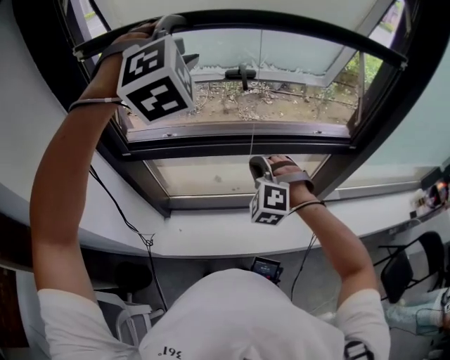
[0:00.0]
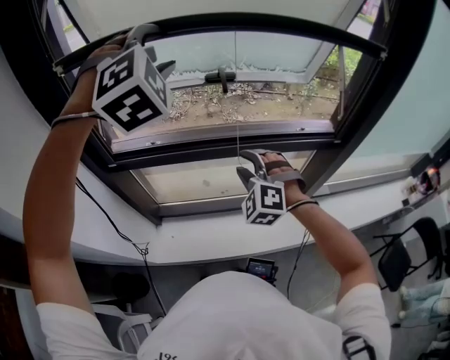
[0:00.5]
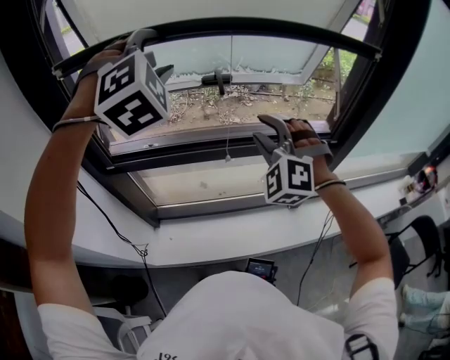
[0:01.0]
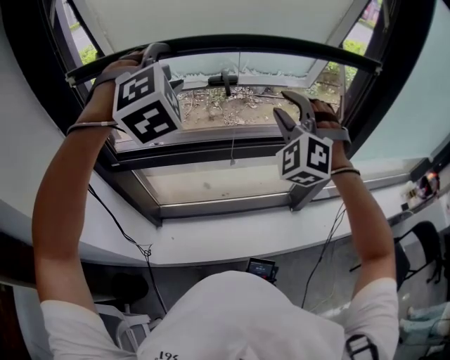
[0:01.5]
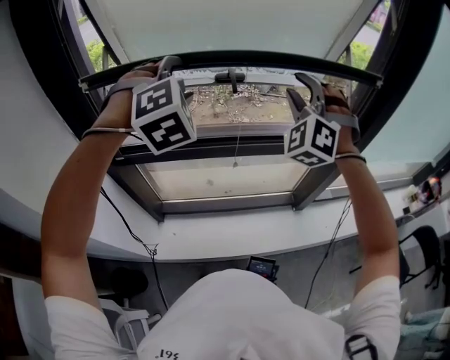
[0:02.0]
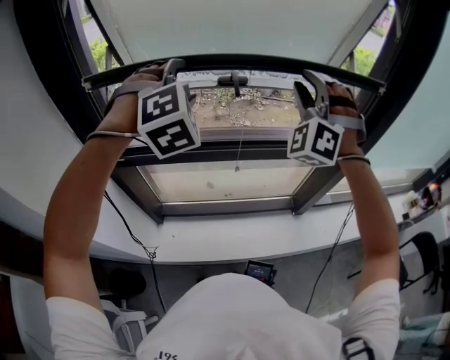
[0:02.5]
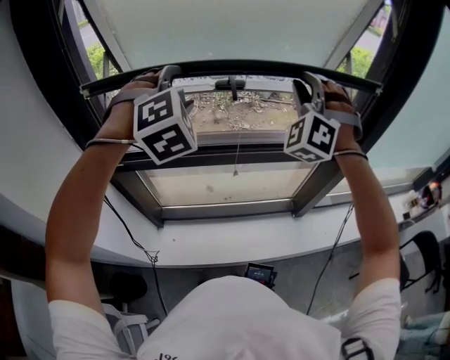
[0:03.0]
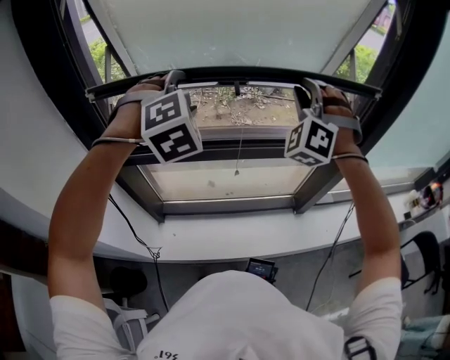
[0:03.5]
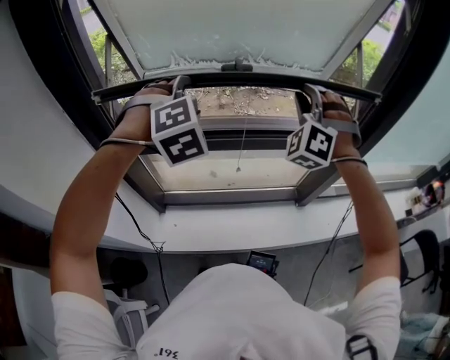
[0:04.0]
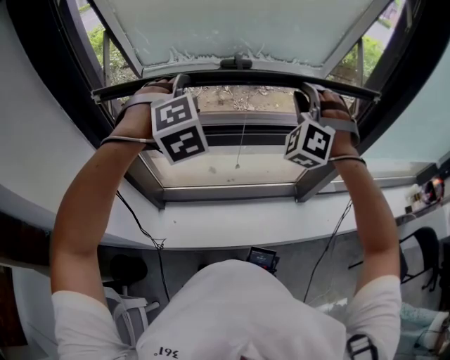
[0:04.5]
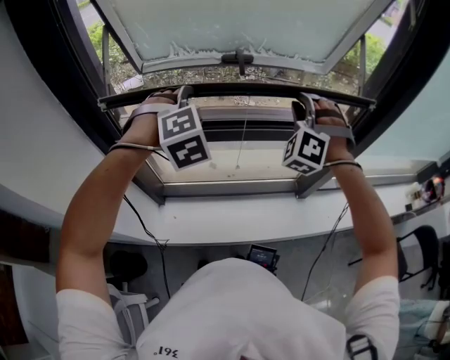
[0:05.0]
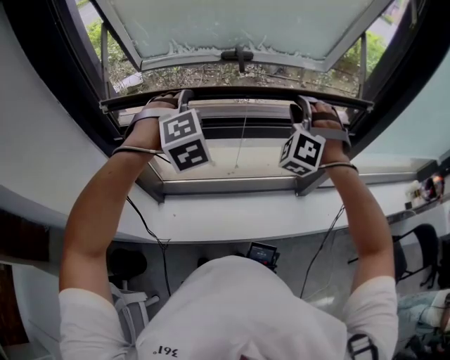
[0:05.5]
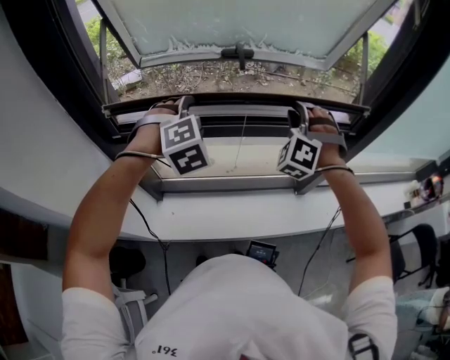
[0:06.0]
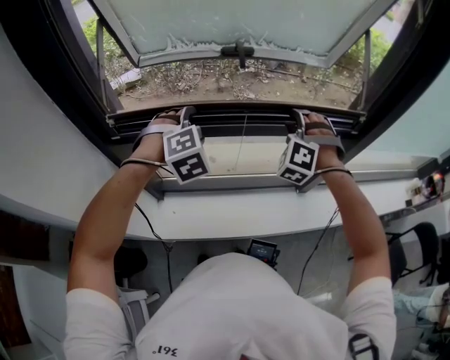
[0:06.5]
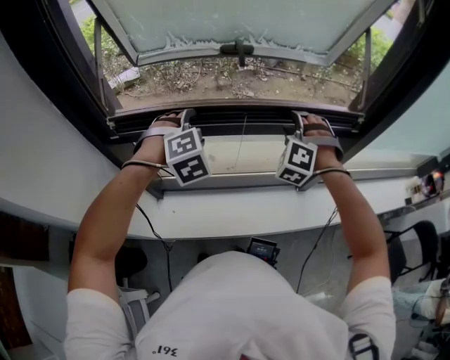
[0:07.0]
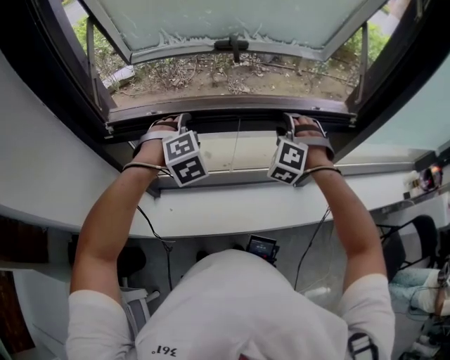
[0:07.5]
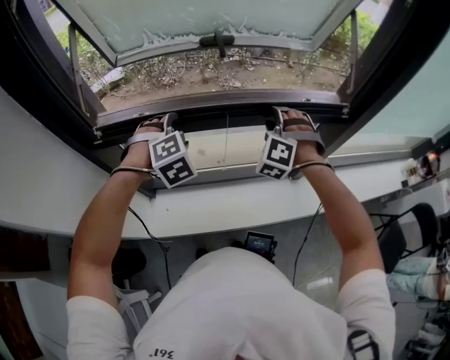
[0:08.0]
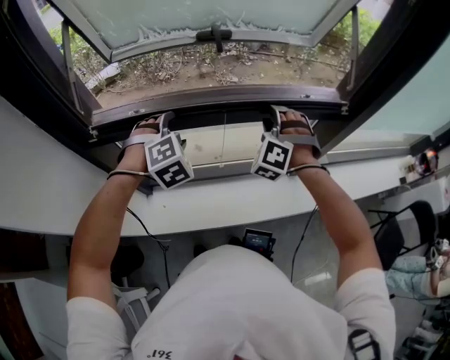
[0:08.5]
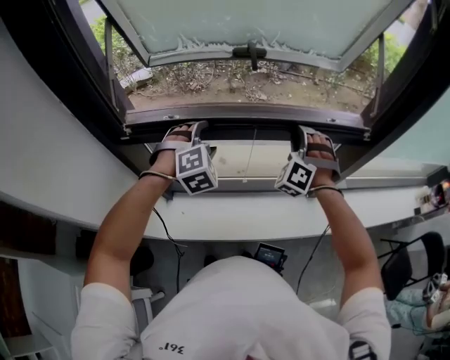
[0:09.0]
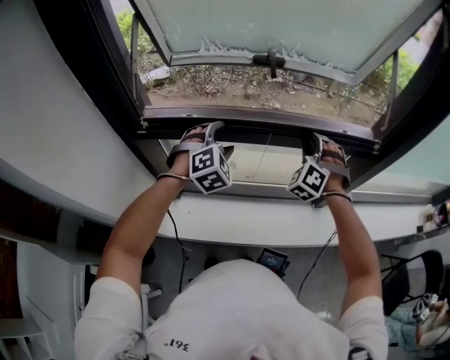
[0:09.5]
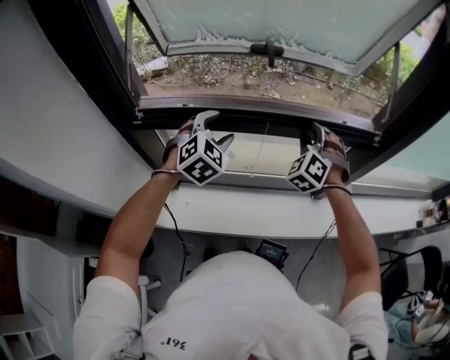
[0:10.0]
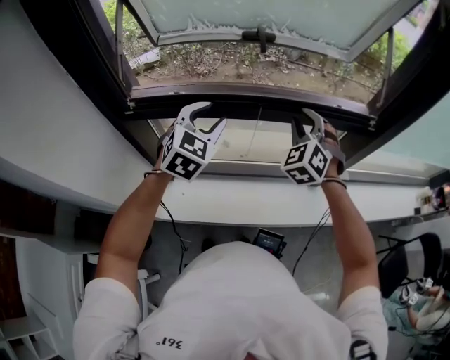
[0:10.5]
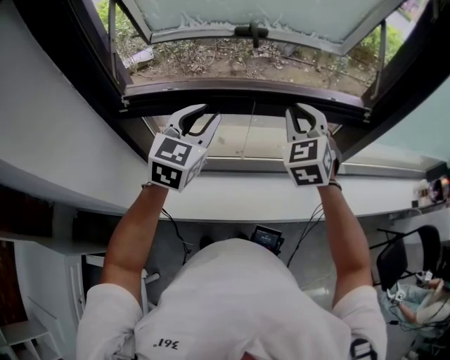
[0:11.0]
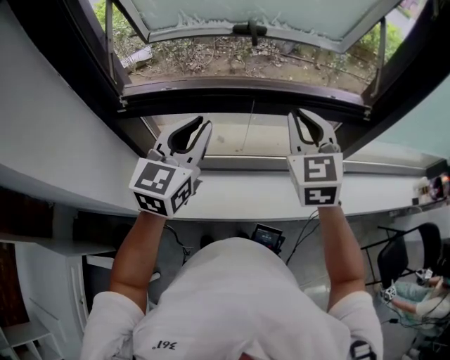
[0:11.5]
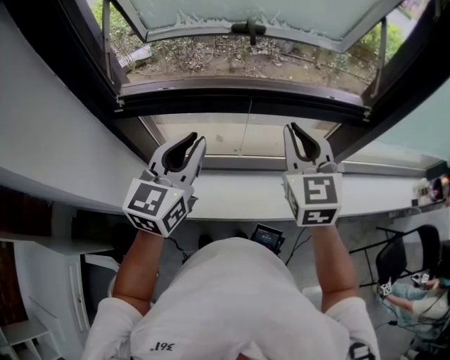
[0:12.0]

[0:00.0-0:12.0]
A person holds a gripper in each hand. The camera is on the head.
0:00.0 to 0:02.0: The right gripper shifts about 25 cm upward and to the right, rotates about 30 degrees, and opens up; the left gripper shifts approximately 10 cm downward.
0:02.0 to 0:04.0: Both grippers travel together downward, approximately 5 cm. The right gripper closes.
0:04.0 to 0:06.0: The two grippers go roughly 10 cm downward.
0:06.0 to 0:08.0: The grippers both shift downward by some 10 cm.
0:08.0 to 0:10.0: The left gripper swivels about 30 degrees.
0:10.0 to 0:12.0: The grippers both shift backward and upward by approximately 15 cm. The left gripper rotates around the line of its fingers by some 40 degrees, counterclockwise from behind, and closes up; the right gripper rotates around the line of its fingers by about 50 degrees, clockwise from behind.

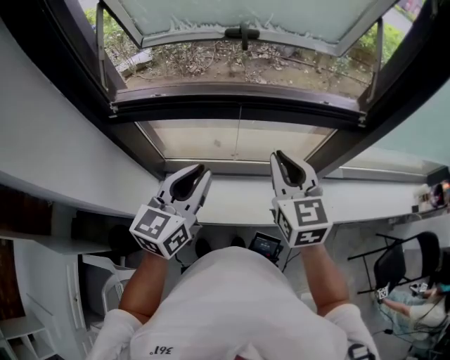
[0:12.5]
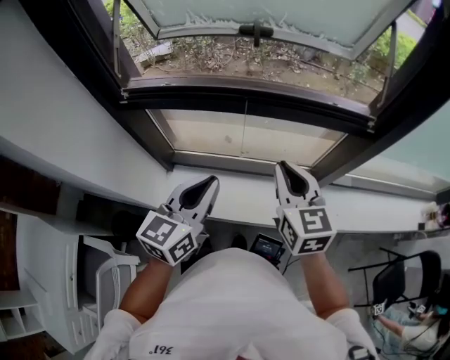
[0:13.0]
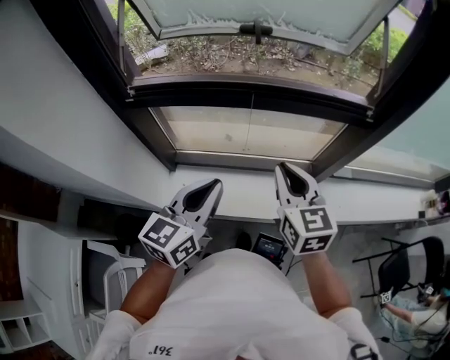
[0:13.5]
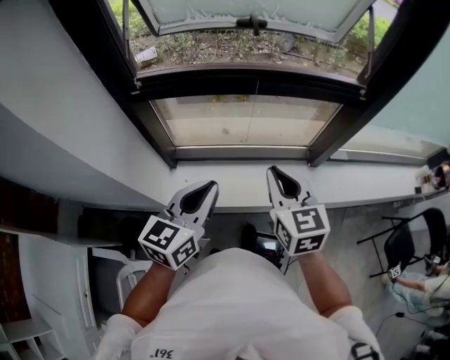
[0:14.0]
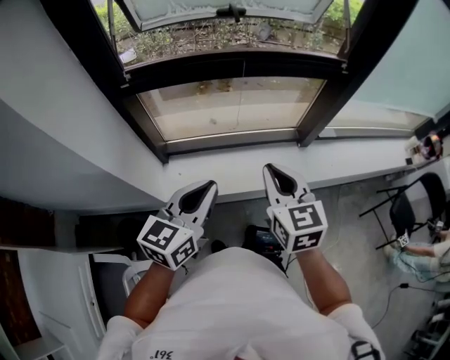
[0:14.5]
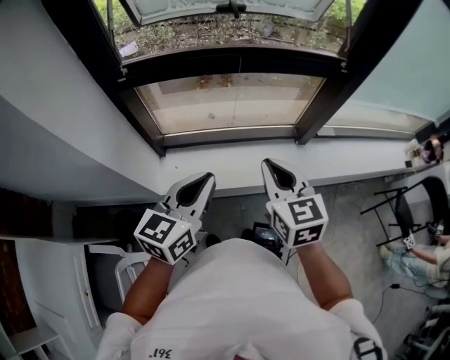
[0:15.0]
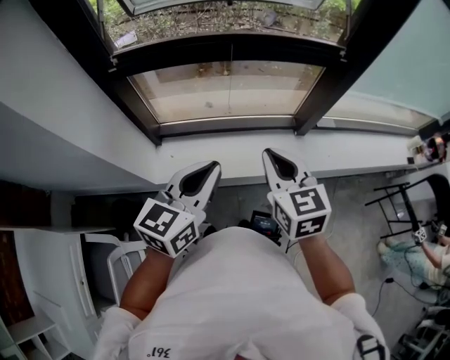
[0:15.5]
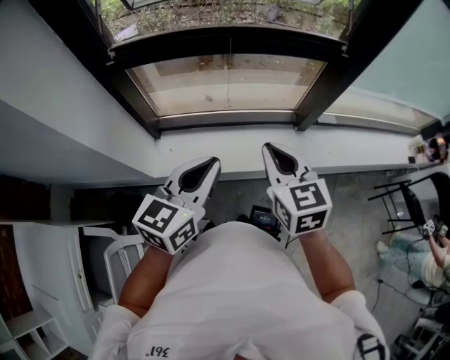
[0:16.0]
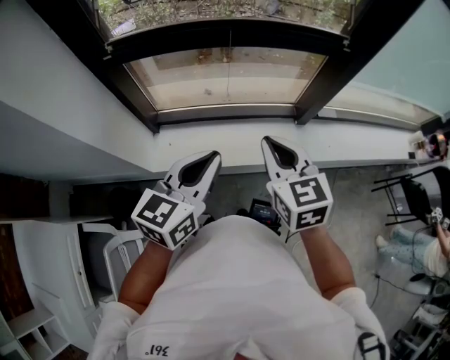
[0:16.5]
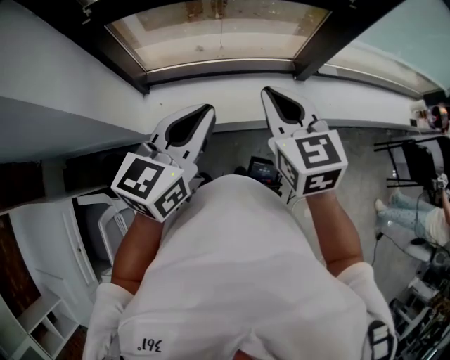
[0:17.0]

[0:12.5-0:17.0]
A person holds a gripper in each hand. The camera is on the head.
0:12.5 to 0:14.5: Both grippers travel together backward, about 20 cm.
0:14.5 to 0:17.0: The right gripper shifts by about 5 cm. Meanwhile the left gripper moves to the right, roughly 5 cm.

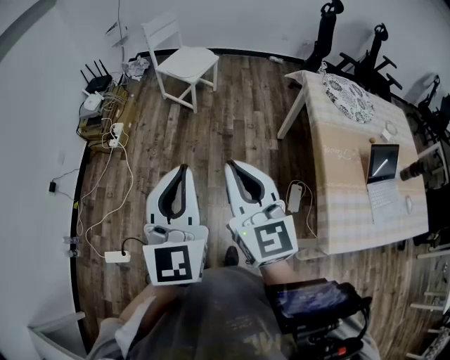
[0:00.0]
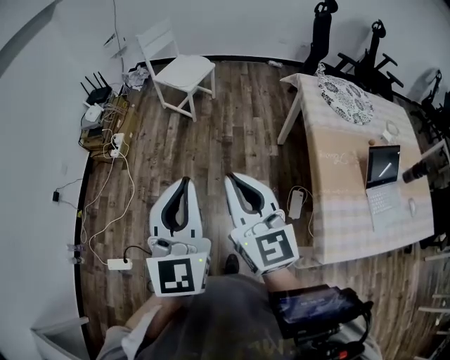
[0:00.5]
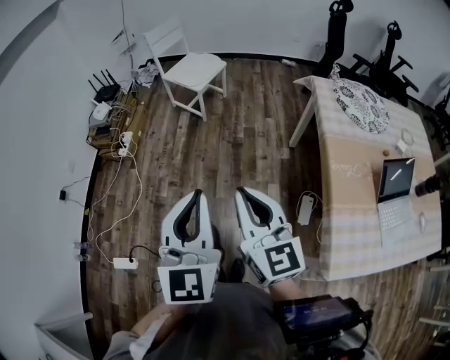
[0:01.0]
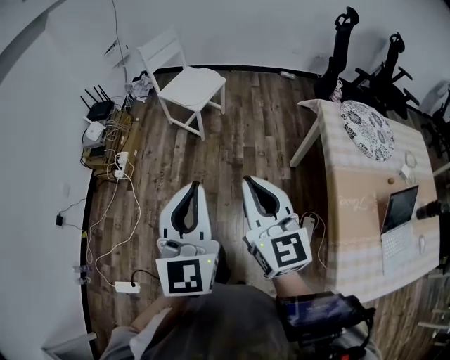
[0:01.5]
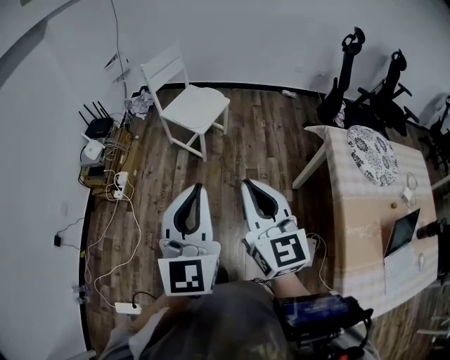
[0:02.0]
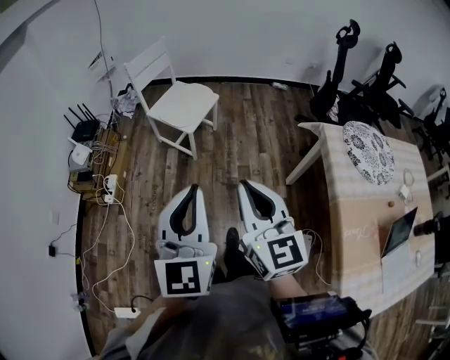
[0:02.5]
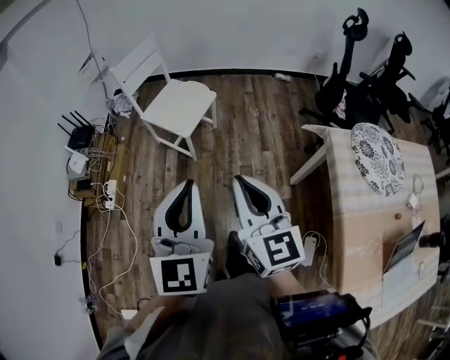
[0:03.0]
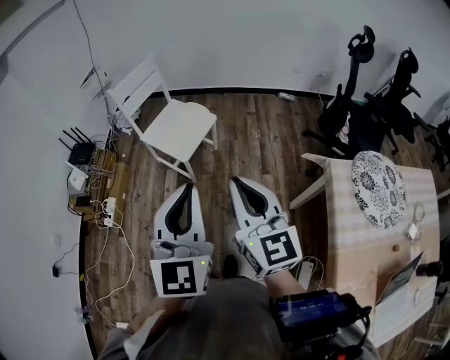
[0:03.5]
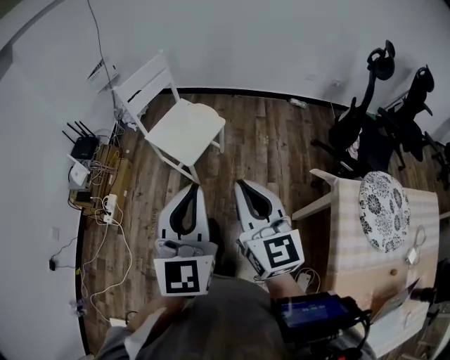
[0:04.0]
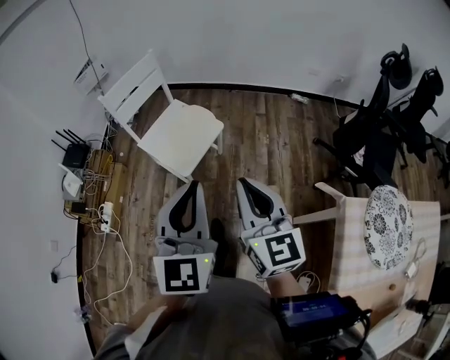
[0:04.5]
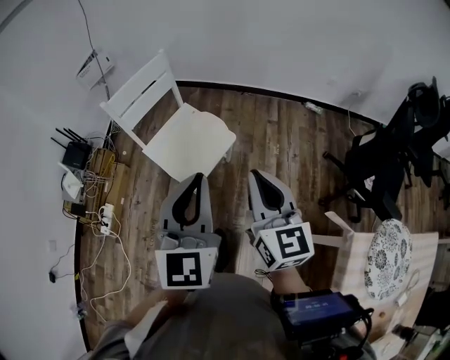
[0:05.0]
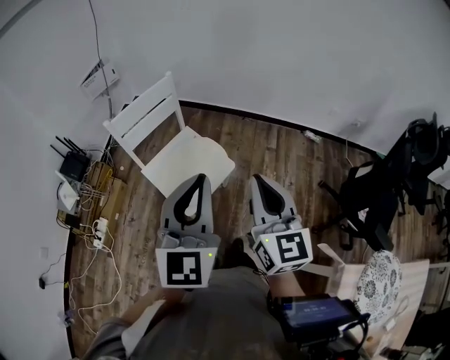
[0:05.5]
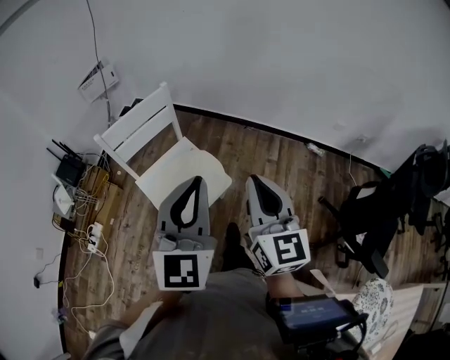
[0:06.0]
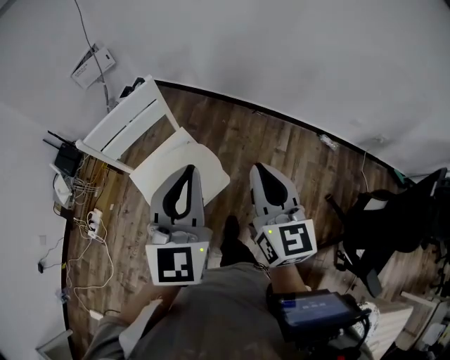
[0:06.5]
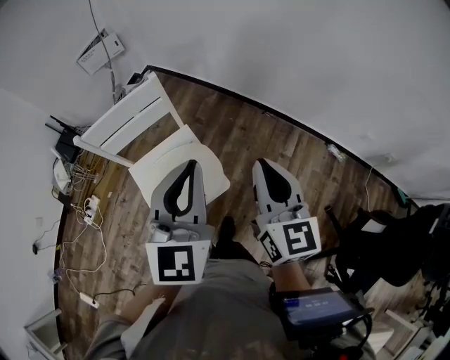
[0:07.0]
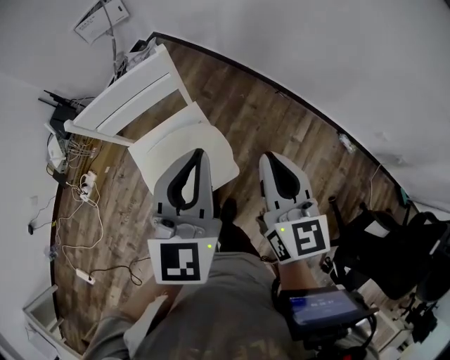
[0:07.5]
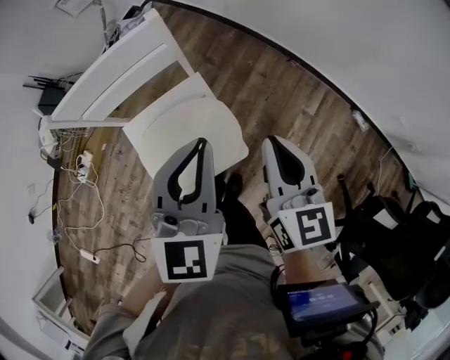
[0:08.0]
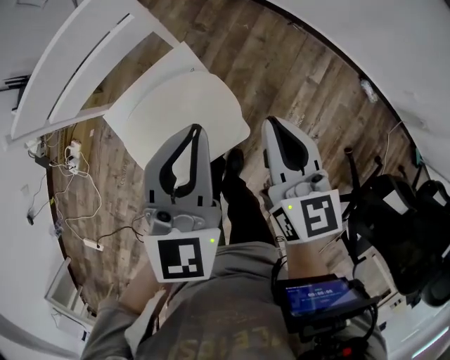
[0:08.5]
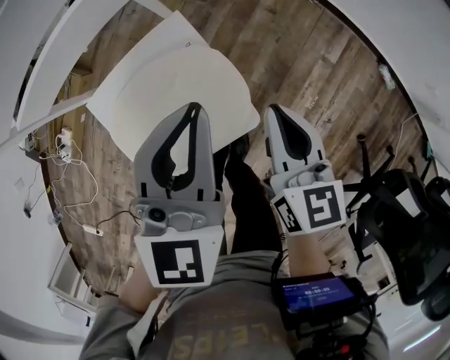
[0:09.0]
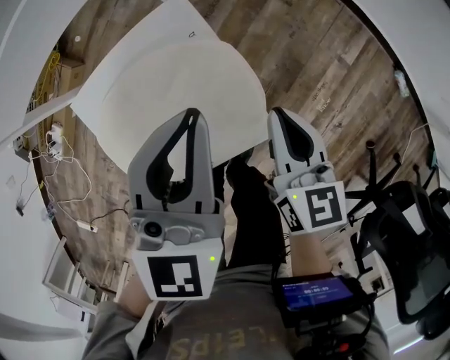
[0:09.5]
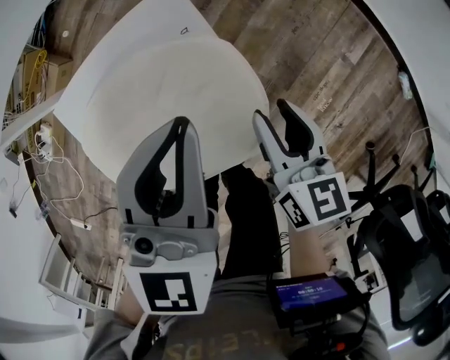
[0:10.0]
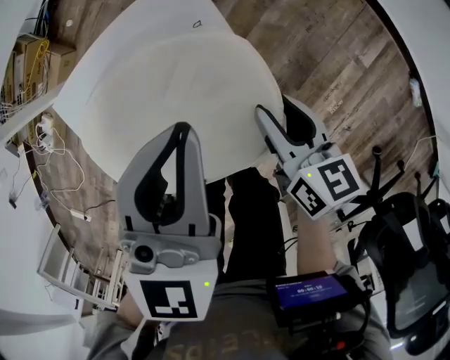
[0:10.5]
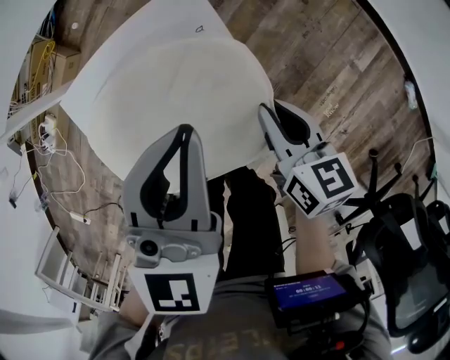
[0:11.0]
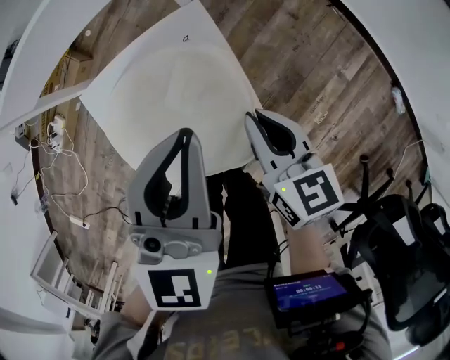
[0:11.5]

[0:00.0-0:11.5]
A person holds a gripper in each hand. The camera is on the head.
0:00.0 to 0:02.0: Both grippers travel together forward, approximately 30 cm.
0:02.0 to 0:04.0: Both grippers travel together forward, about 30 cm.
0:04.0 to 0:06.0: The pair of grippers is taken forward, roughly 40 cm.
0:06.0 to 0:07.5: The grippers both shift forward and downward by approximately 25 cm.
0:07.5 to 0:09.5: Both grippers travel together downward, some 35 cm. The right gripper changes its angle by approximately 20 degrees.
0:09.5 to 0:11.5: The right gripper heads to the left, covering about 5 cm, goes downward and returns, roughly 10 cm each way, and opens, then closes again.
